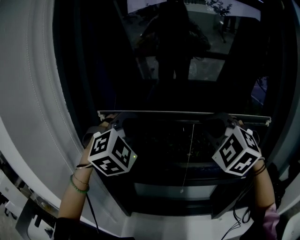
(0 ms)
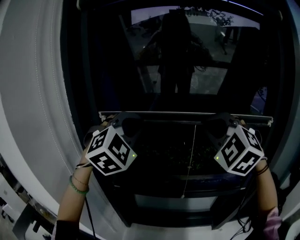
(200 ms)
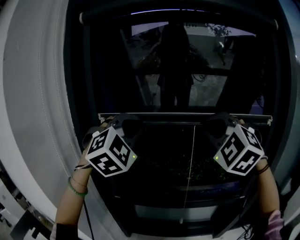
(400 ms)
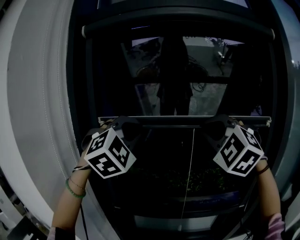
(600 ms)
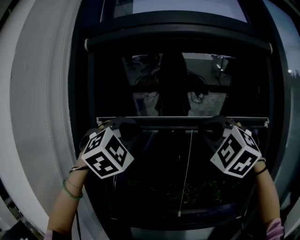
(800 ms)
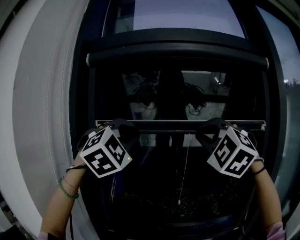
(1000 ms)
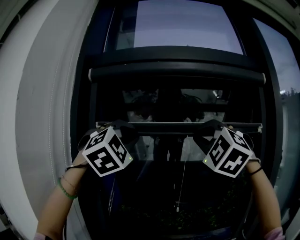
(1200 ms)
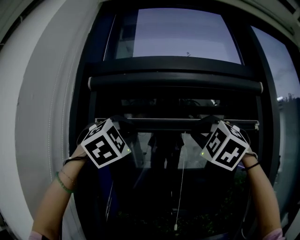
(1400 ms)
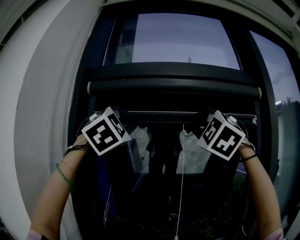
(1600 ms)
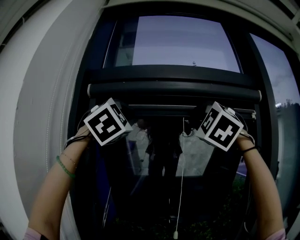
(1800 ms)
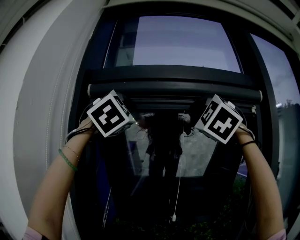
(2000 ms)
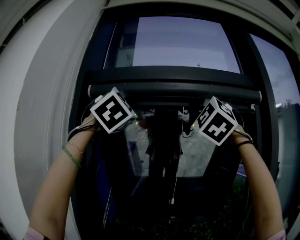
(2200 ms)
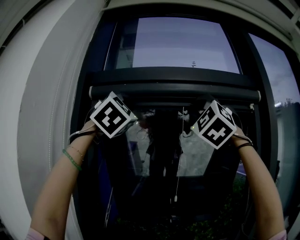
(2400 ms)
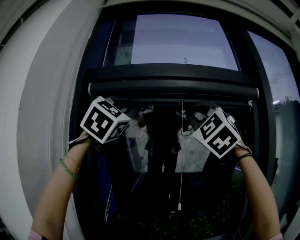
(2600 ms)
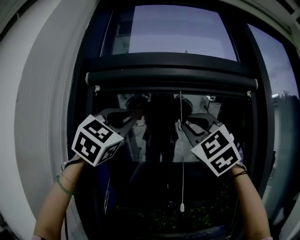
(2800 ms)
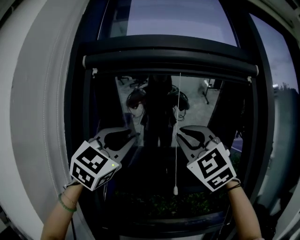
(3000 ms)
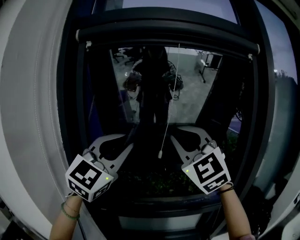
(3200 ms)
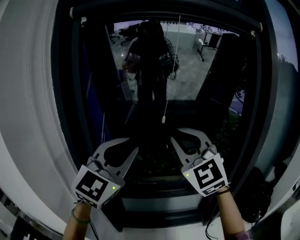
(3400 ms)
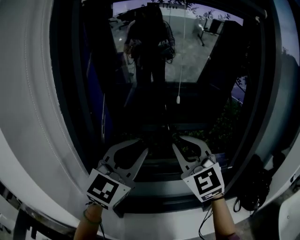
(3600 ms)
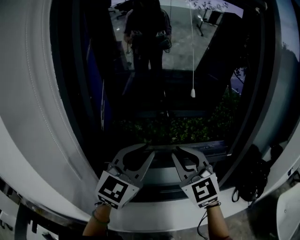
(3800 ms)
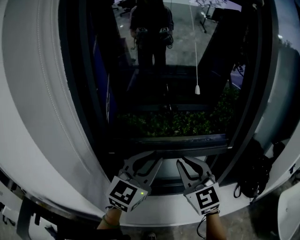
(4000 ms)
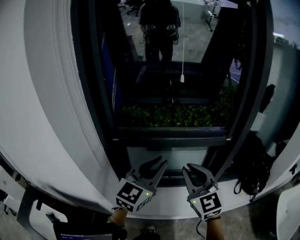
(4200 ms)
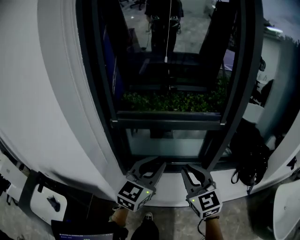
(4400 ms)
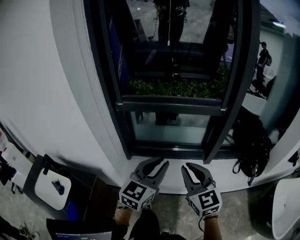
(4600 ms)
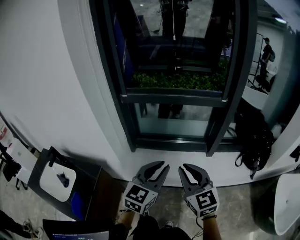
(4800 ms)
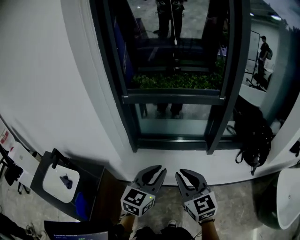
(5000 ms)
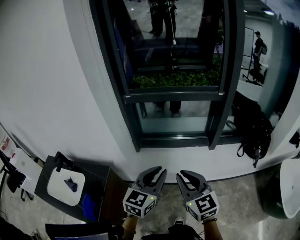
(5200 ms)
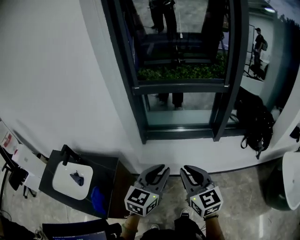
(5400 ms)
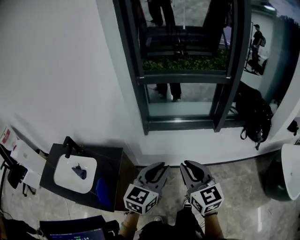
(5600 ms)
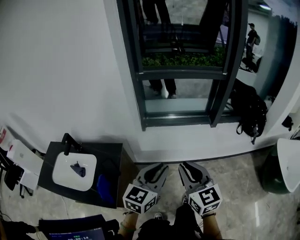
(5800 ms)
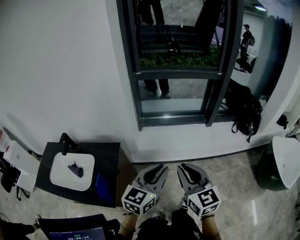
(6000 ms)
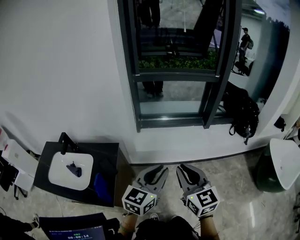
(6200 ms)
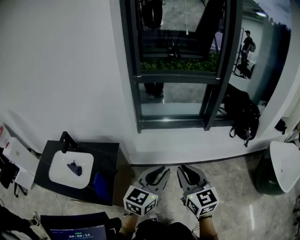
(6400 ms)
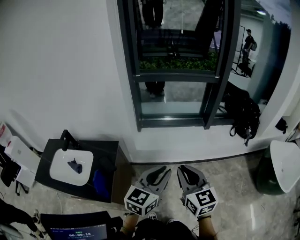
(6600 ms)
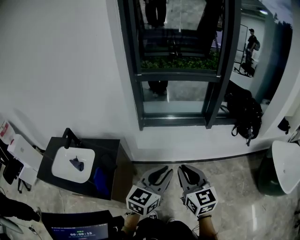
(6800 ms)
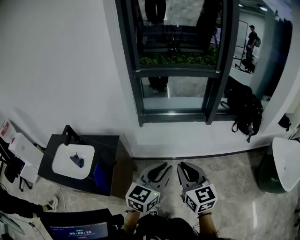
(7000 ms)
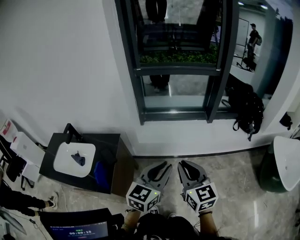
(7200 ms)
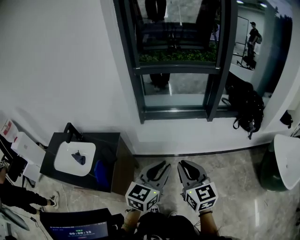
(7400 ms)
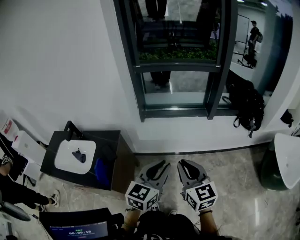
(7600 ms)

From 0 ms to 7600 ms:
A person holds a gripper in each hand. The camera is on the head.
From 0 ms to 1600 ms: Both grippers travel together upward, approximately 35 cm. The right gripper changes its angle by about 30 degrees. Meanwhile the left gripper changes its angle by some 20 degrees.
From 1600 ms to 3000 ms: Both grippers move downward, some 15 cm. The left gripper changes its angle by about 30 degrees; the right gripper rotates some 30 degrees.
From 3000 ms to 4600 ms: The two grippers go roughly 60 cm downward and backward. The right gripper rolls clockwise, seen from behind, by approximately 50 degrees. Meanwhile the left gripper rotates around the line of its fingers by roughly 40 degrees, counterclockwise from behind.
From 4600 ms to 6000 ms: Both grippers travel together backward and to the left, about 35 cm.
From 6000 ms to 7600 ms: The right gripper moves to the right, roughly 5 cm; the left gripper is displaced to the right and backward by roughly 10 cm.

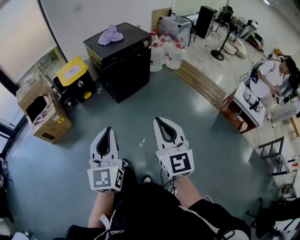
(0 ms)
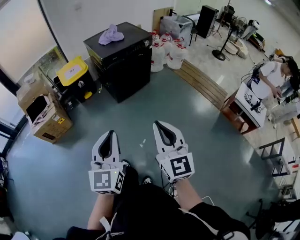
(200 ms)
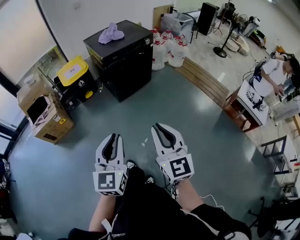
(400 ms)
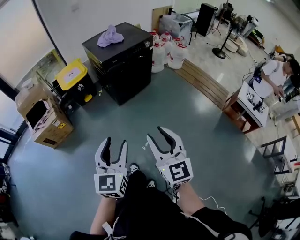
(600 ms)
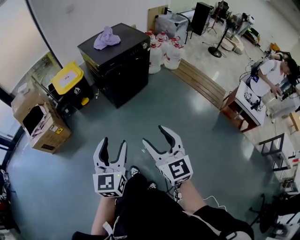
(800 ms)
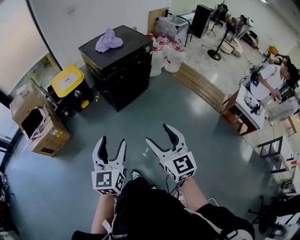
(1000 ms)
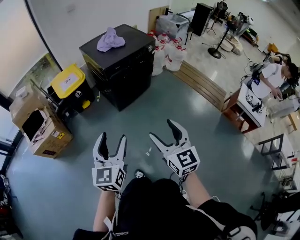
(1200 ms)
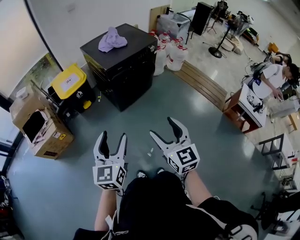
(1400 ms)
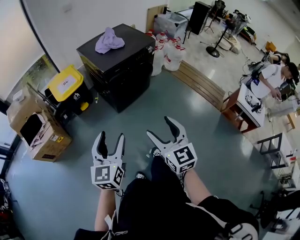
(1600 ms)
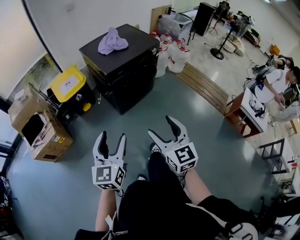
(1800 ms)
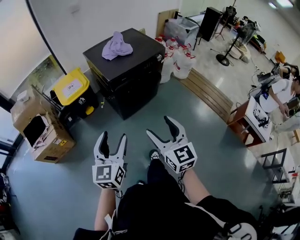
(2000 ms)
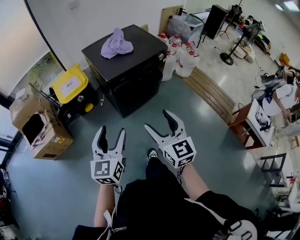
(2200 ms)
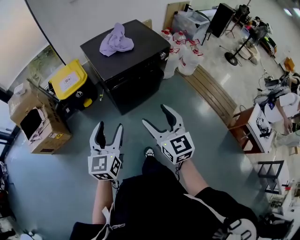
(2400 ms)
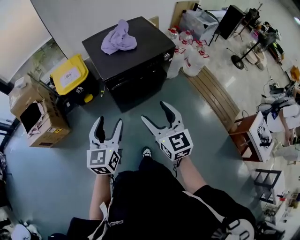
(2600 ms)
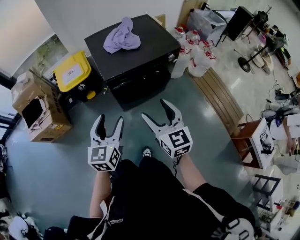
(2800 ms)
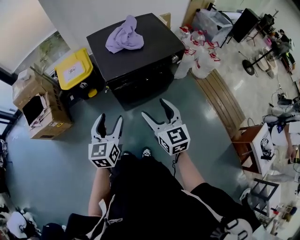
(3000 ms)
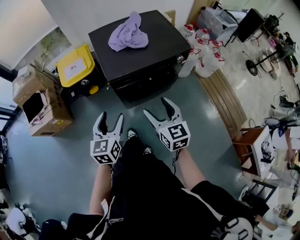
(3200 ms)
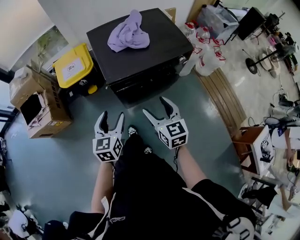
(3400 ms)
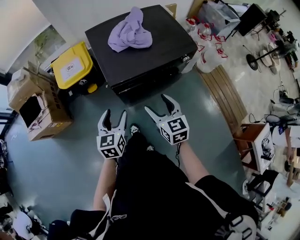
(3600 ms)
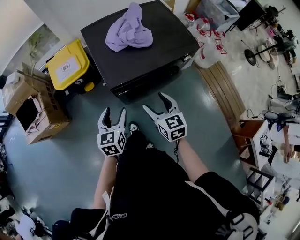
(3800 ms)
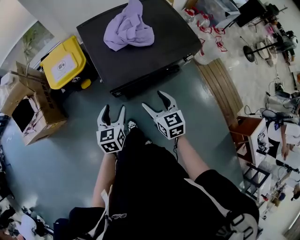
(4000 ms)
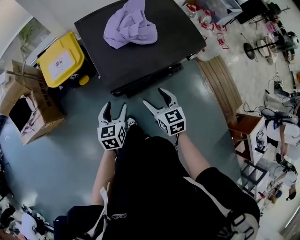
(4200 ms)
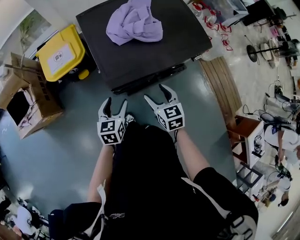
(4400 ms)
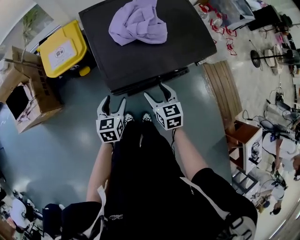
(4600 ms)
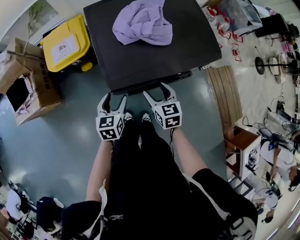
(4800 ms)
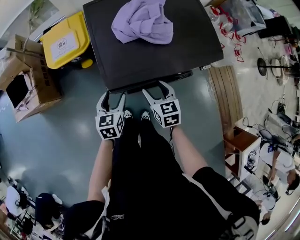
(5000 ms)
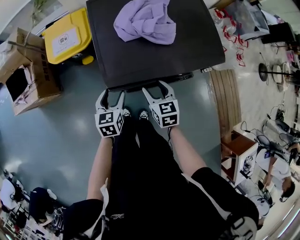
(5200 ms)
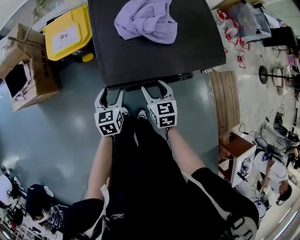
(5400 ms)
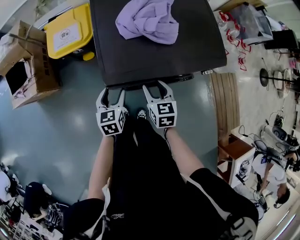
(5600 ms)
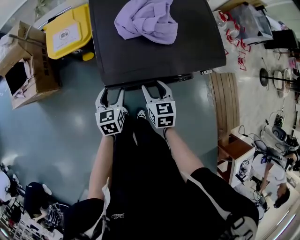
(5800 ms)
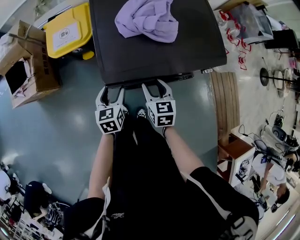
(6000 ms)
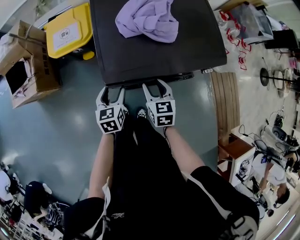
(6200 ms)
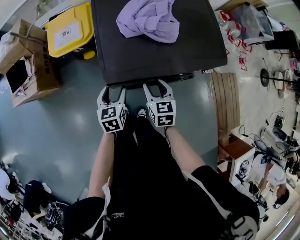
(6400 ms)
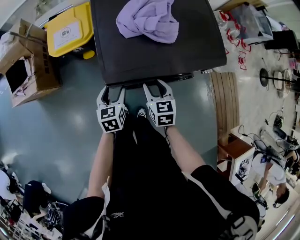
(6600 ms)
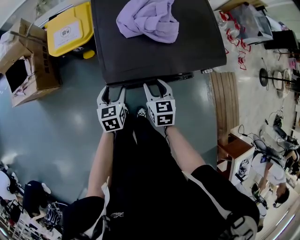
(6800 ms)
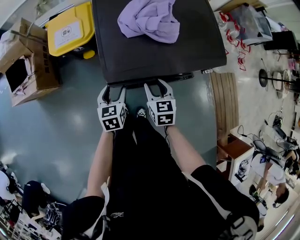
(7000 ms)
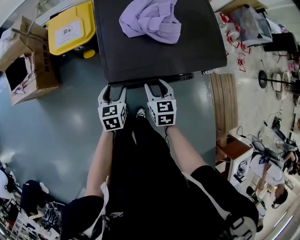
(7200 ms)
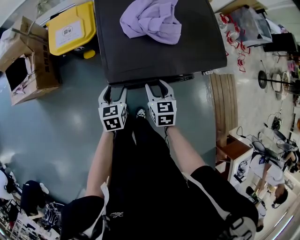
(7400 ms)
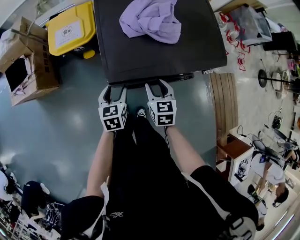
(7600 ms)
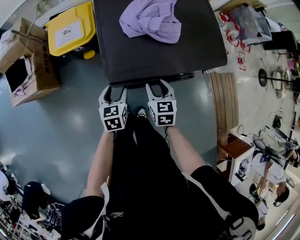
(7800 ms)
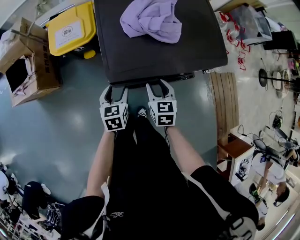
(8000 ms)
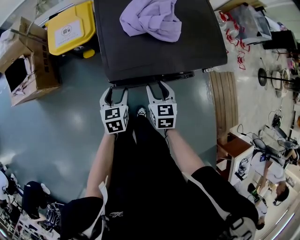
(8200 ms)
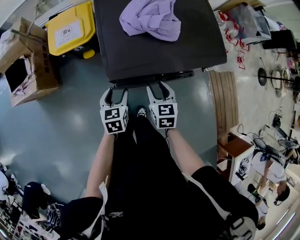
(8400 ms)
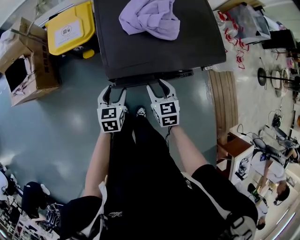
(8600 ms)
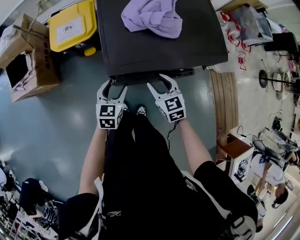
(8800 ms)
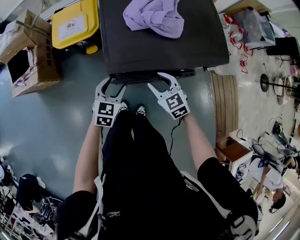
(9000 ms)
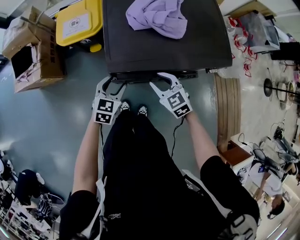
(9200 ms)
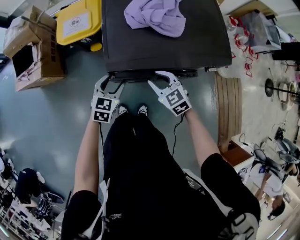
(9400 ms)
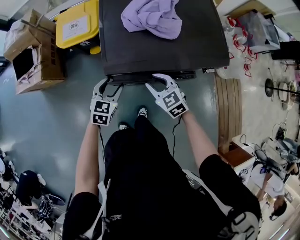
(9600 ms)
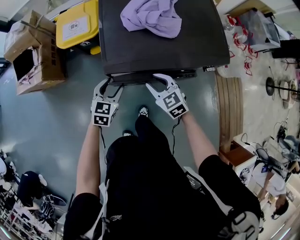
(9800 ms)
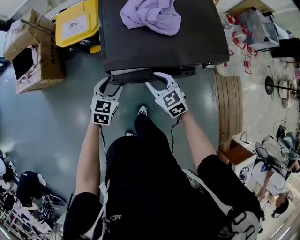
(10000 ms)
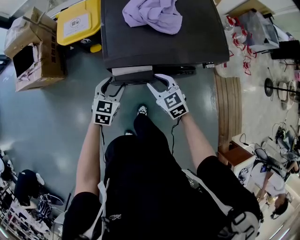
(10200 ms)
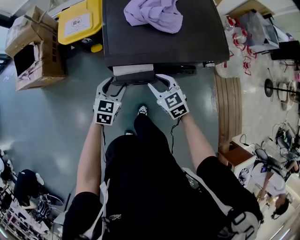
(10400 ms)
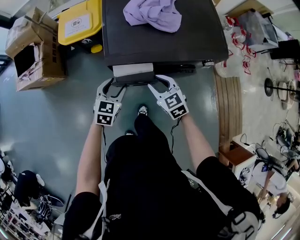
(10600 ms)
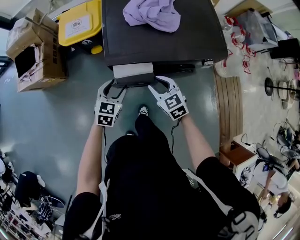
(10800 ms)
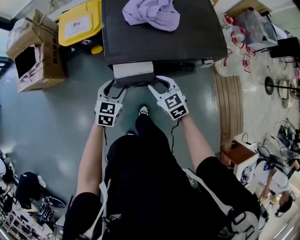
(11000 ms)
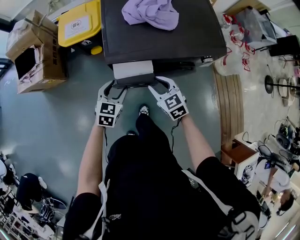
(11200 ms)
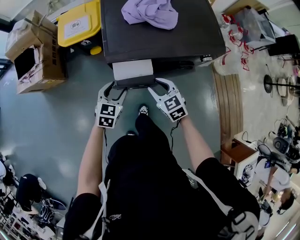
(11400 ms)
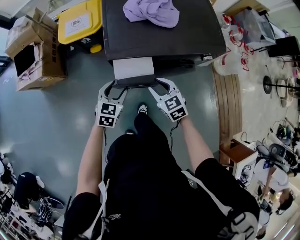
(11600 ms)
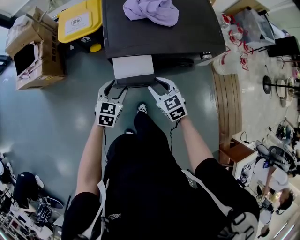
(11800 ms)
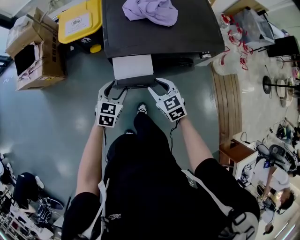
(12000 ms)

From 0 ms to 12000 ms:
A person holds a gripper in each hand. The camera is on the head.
From 0 ms to 1600 ms: The two grippers go some 25 cm forward and to the left. The right gripper opens, while the left gripper opens its fingers.
From 1600 ms to 3000 ms: The grippers both shift forward by roughly 35 cm.
From 3000 ms to 4400 ms: Both grippers move forward and downward, about 30 cm. The right gripper swivels roughly 20 degrees.
From 4400 ms to 6000 ms: The left gripper shifts by roughly 5 cm. Meanwhile the right gripper heads forward, covering some 5 cm, and closes.
From 6000 ms to 7600 ms: Both grippers stay about where they are.
From 7600 ms to 9000 ms: The left gripper rotates about 20 degrees, while the right gripper turns by approximately 30 degrees.
From 9000 ms to 10400 ms: The grippers make only small movements.
From 10400 ms to 12000 ms: The two grippers go roughly 5 cm backward.

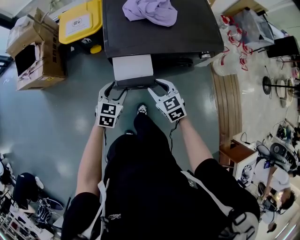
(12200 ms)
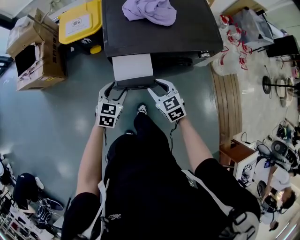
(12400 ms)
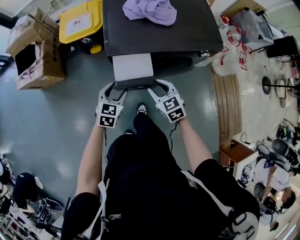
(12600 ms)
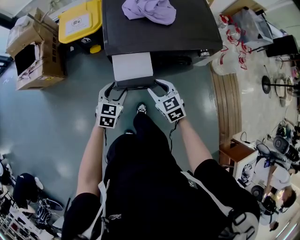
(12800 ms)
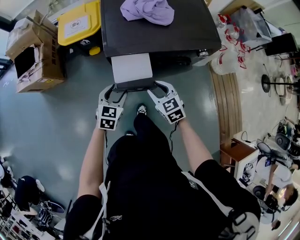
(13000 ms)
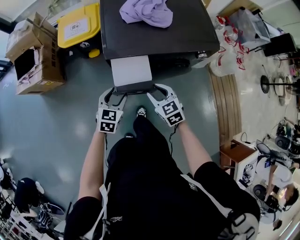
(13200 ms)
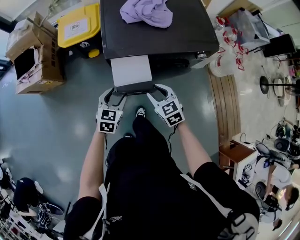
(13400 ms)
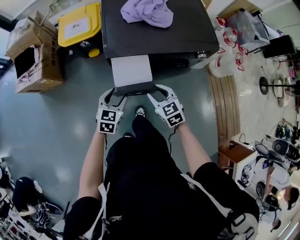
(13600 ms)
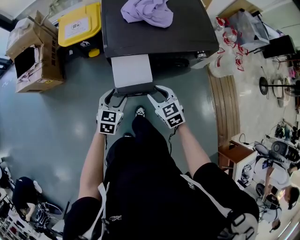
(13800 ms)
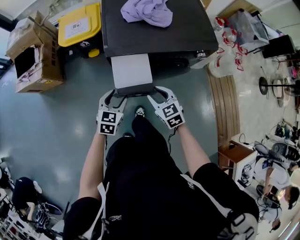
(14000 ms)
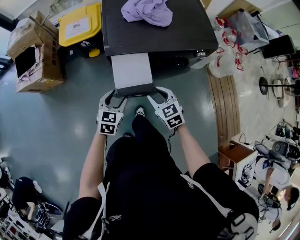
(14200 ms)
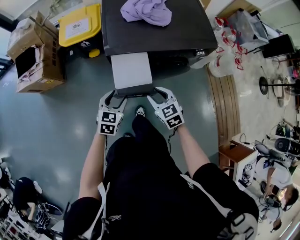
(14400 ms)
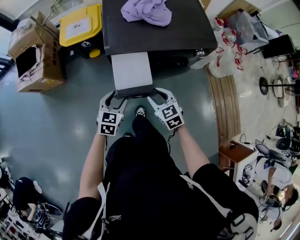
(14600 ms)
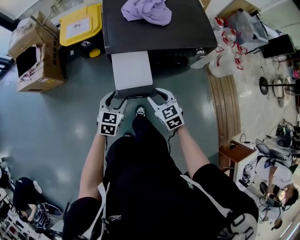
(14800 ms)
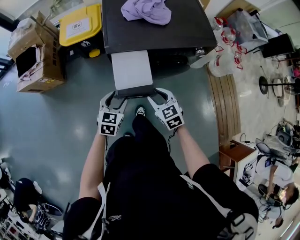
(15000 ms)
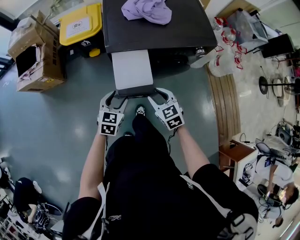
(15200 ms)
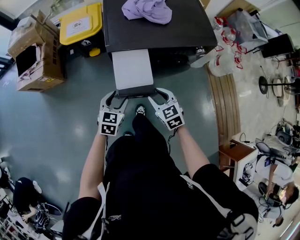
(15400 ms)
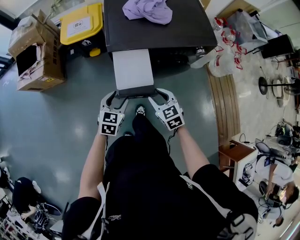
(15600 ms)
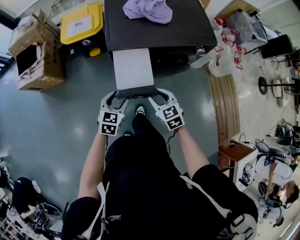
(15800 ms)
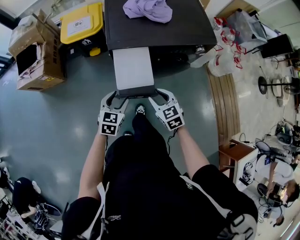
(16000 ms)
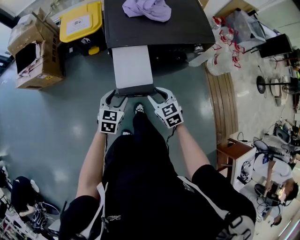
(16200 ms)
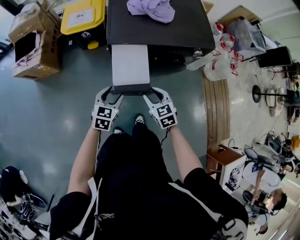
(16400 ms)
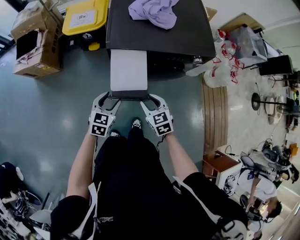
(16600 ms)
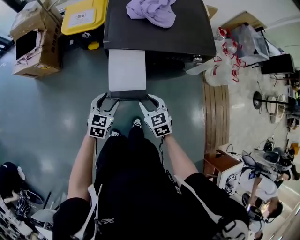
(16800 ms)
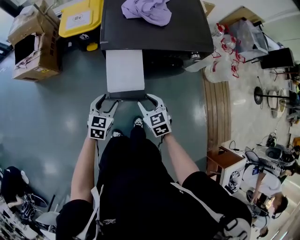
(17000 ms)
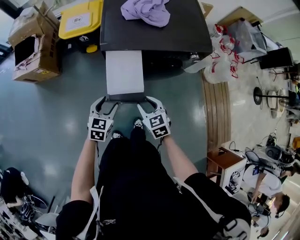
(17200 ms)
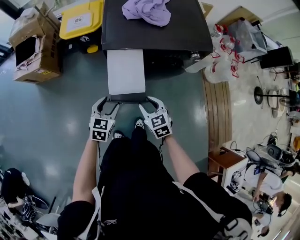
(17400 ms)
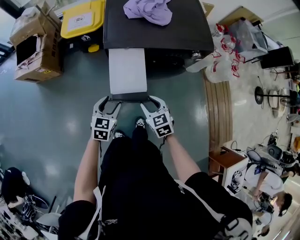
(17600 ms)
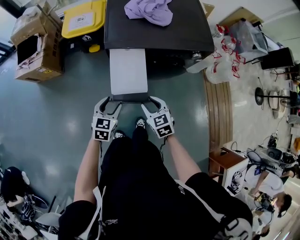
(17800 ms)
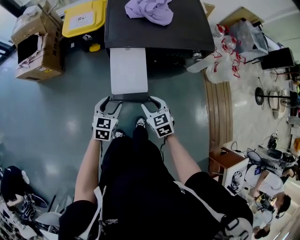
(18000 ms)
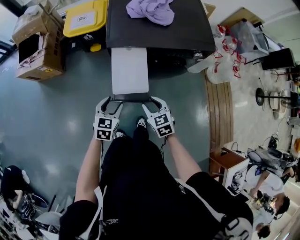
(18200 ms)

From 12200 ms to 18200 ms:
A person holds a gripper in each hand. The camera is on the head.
From 12200 ms to 13800 ms: The grippers stay close to where they were, moving slightly.
From 13800 ms to 16600 ms: There are only small adjustments of the grippers.
From 16600 ms to 18200 ms: The grippers stay close to where they were, moving slightly.
